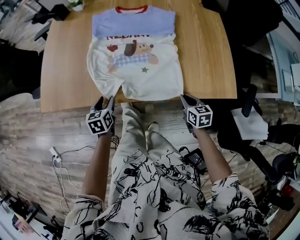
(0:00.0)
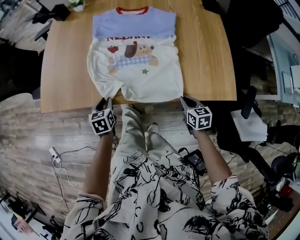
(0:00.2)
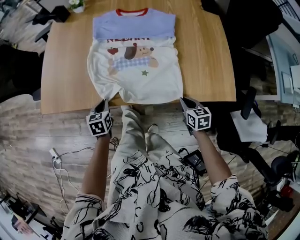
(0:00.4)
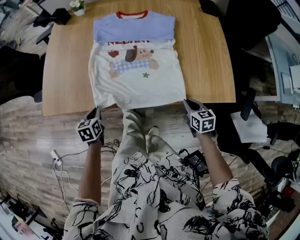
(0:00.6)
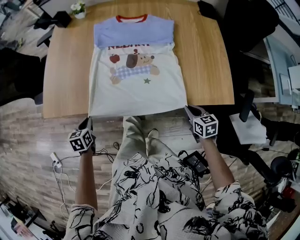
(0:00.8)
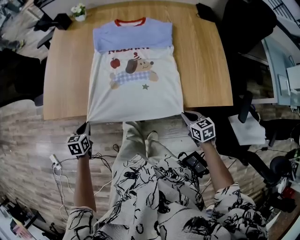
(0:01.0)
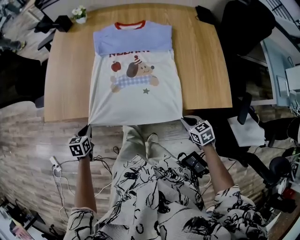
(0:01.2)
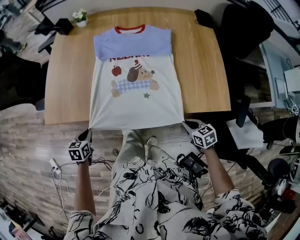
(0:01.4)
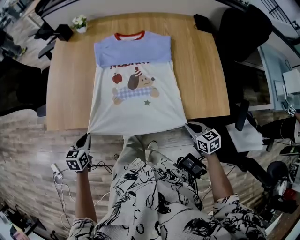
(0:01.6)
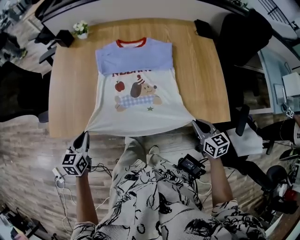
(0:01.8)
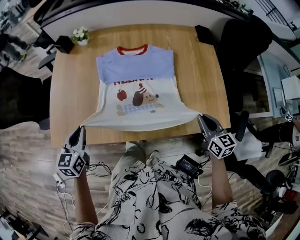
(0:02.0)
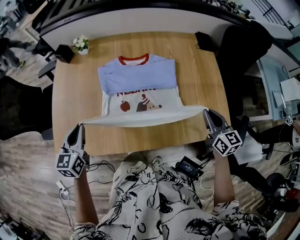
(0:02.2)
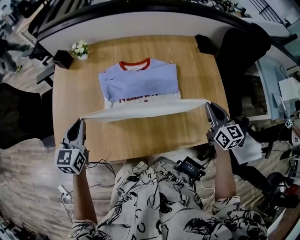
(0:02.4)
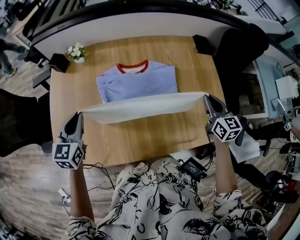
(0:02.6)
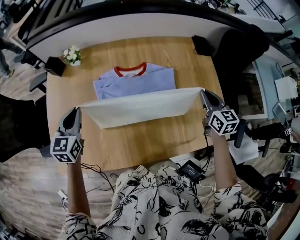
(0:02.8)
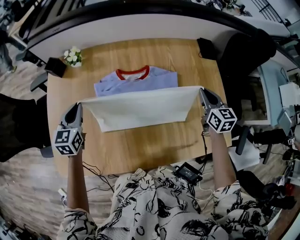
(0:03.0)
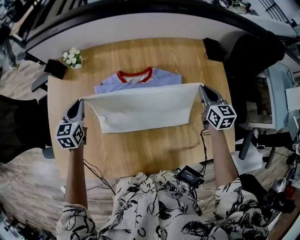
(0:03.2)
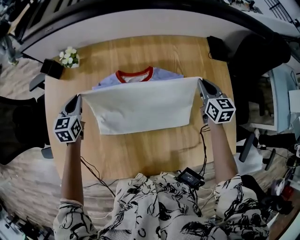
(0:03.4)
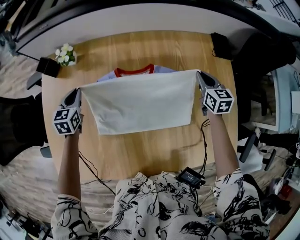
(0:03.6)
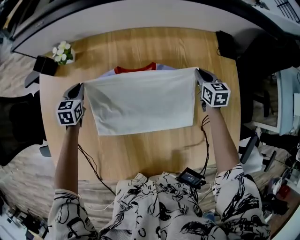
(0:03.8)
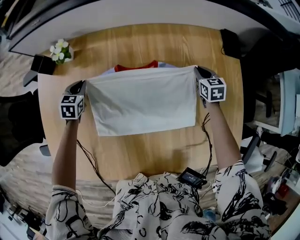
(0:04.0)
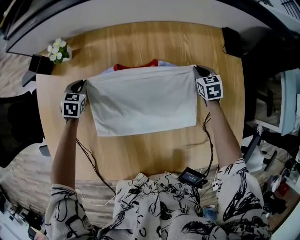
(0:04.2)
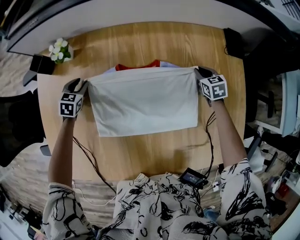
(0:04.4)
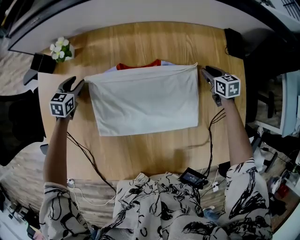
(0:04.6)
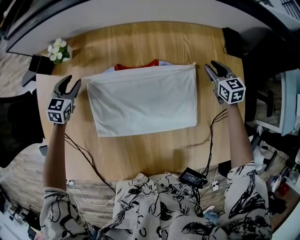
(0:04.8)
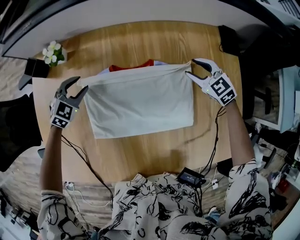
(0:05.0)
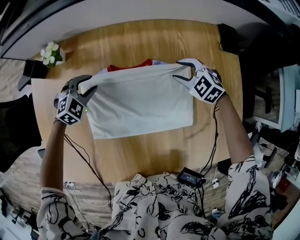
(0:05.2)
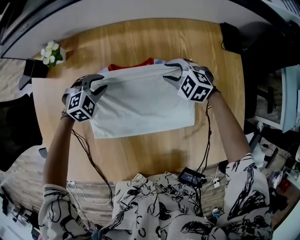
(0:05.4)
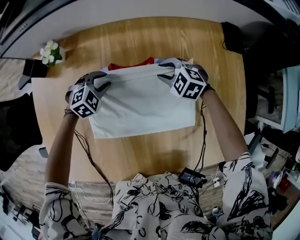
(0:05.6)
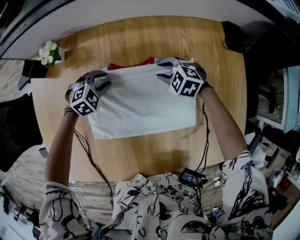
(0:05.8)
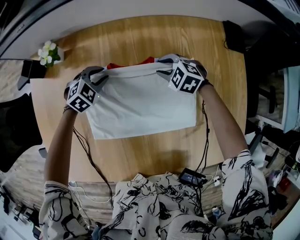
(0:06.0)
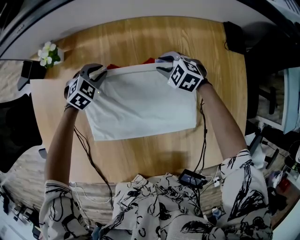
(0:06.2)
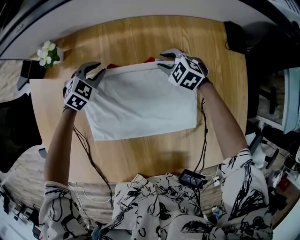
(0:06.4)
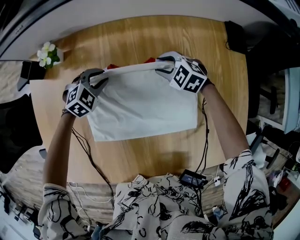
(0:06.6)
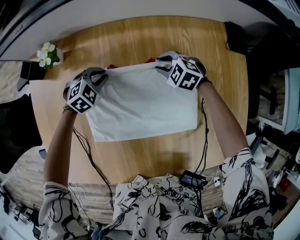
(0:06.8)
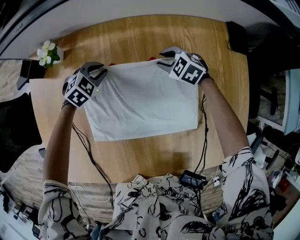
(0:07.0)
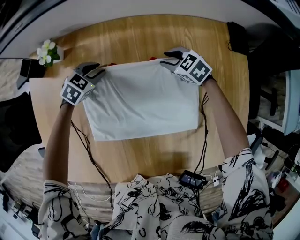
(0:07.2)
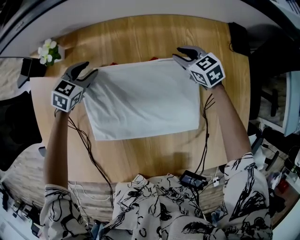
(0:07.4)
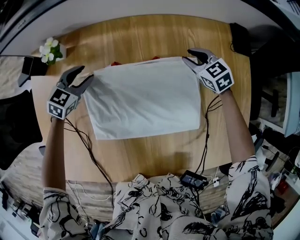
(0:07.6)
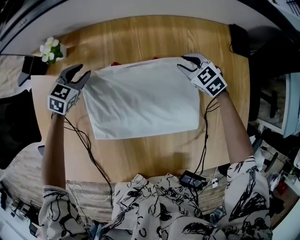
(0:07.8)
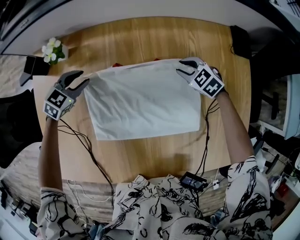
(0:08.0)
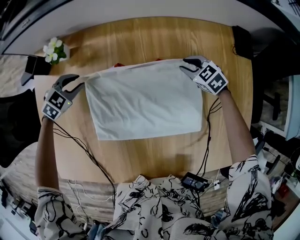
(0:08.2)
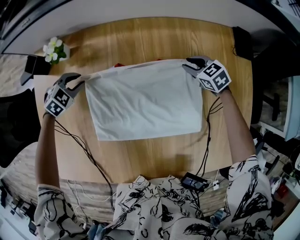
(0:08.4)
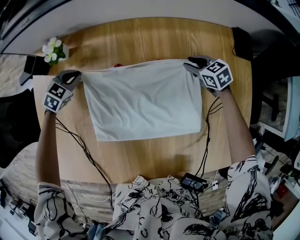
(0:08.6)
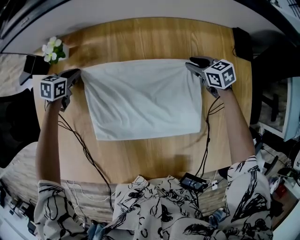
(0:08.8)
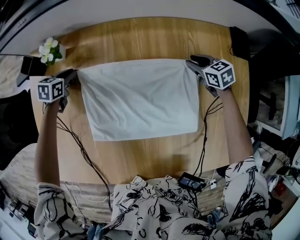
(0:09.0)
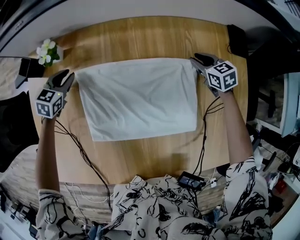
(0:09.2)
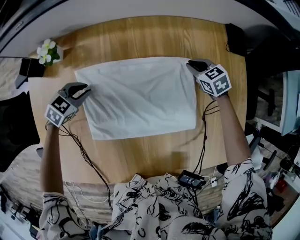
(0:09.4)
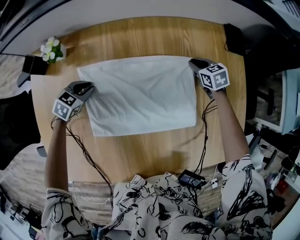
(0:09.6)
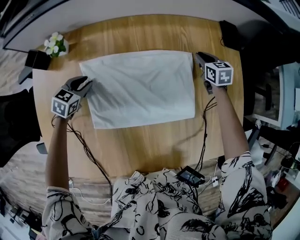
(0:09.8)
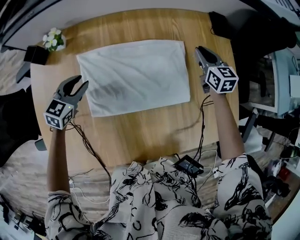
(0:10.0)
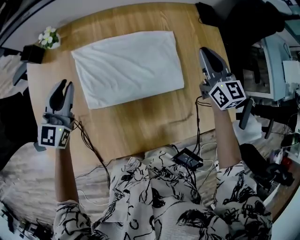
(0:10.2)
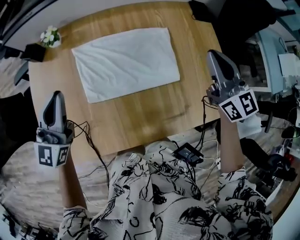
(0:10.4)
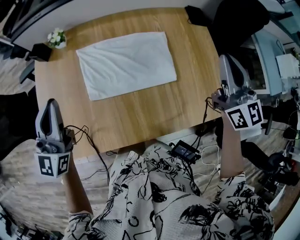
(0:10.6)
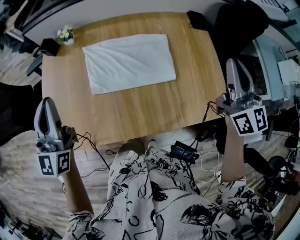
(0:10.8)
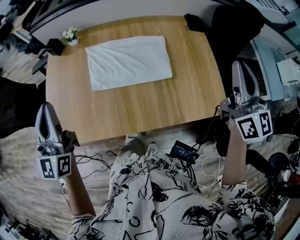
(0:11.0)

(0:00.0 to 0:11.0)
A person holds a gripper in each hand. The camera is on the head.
0:00.0 - 0:01.6: The left gripper moves to the left and upward, approximately 15 cm, and closes its fingers. Meanwhile the right gripper is displaced upward by some 5 cm.
0:01.6 - 0:03.2: The two grippers travel together, forward, approximately 50 cm. The right gripper turns by about 30 degrees.
0:03.2 - 0:04.8: Both grippers move forward and downward, some 20 cm. The left gripper opens.
0:04.8 - 0:06.2: The right gripper goes some 20 cm to the left, and swivels roughly 50 degrees. Meanwhile the left gripper moves to the right, some 15 cm, and turns by roughly 30 degrees.
0:06.2 - 0:07.8: The left gripper travels to the left by roughly 10 cm, and turns by about 20 degrees; the right gripper goes some 5 cm to the right.
0:07.8 - 0:09.4: The right gripper travels to the right by some 5 cm; the left gripper heads backward, covering some 5 cm.
0:09.4 - 0:11.0: Both grippers move upward and backward, about 60 cm. The right gripper tilts its fingers about 60 degrees upward, while the left gripper tips its fingers upward by roughly 70 degrees.

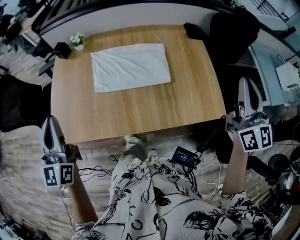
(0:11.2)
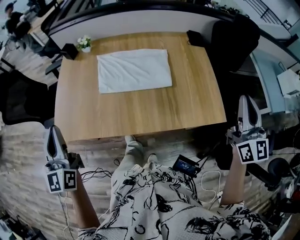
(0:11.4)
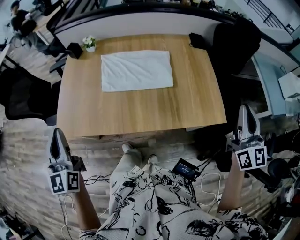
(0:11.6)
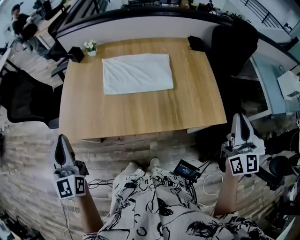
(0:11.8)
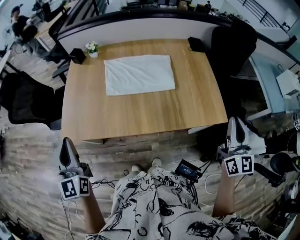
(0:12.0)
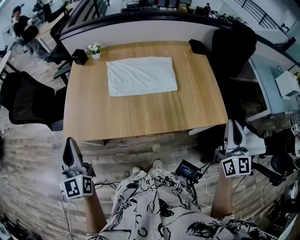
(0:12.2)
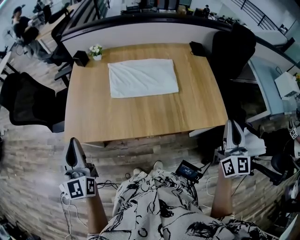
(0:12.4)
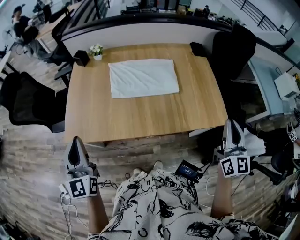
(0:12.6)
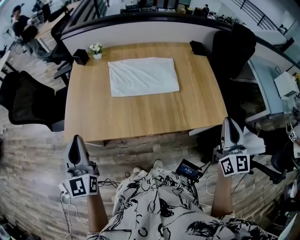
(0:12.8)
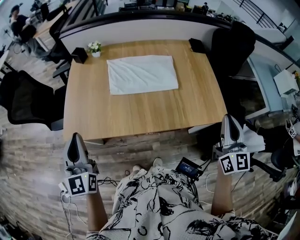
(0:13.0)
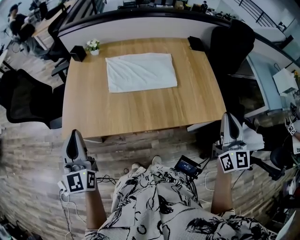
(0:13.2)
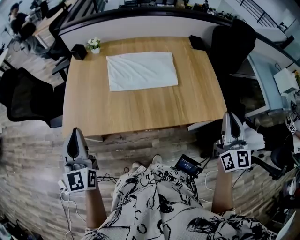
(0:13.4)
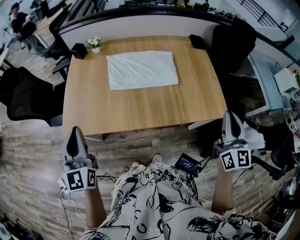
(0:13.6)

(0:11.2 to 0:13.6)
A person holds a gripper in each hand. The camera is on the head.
0:11.2 - 0:12.4: The left gripper is displaced backward by roughly 10 cm. Meanwhile the right gripper shifts roughly 15 cm backward and downward.
0:12.4 - 0:13.6: The grippers stay close to where they were, moving slightly.

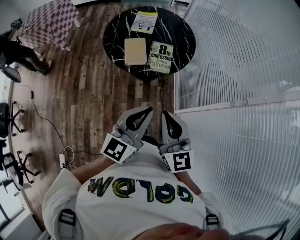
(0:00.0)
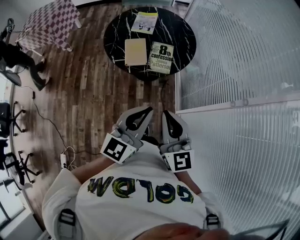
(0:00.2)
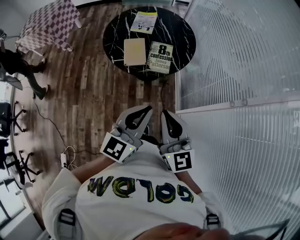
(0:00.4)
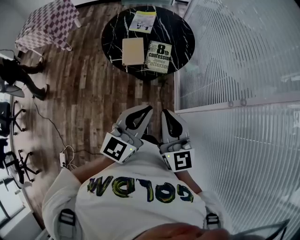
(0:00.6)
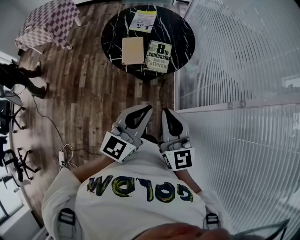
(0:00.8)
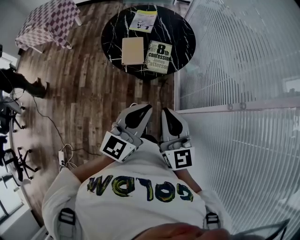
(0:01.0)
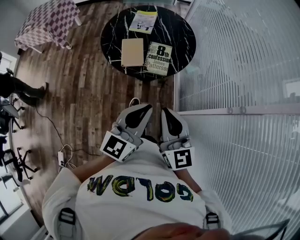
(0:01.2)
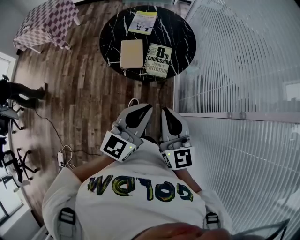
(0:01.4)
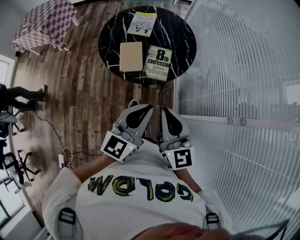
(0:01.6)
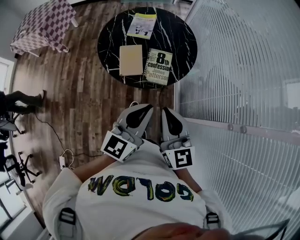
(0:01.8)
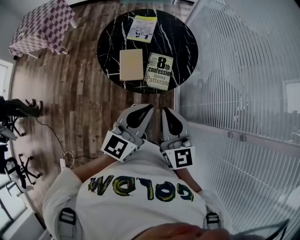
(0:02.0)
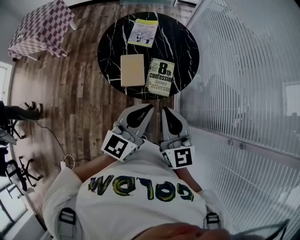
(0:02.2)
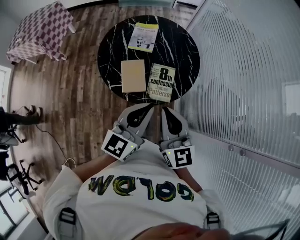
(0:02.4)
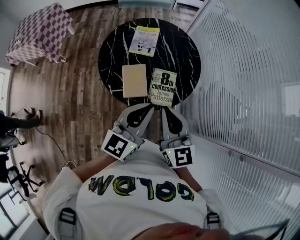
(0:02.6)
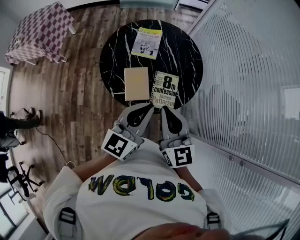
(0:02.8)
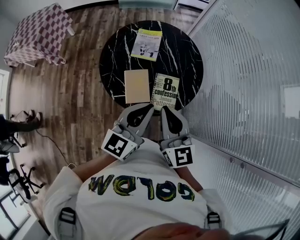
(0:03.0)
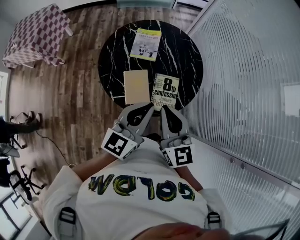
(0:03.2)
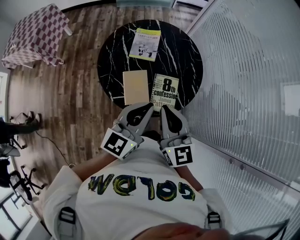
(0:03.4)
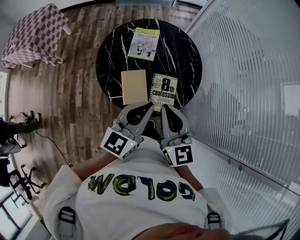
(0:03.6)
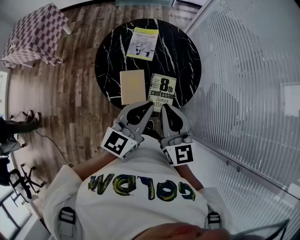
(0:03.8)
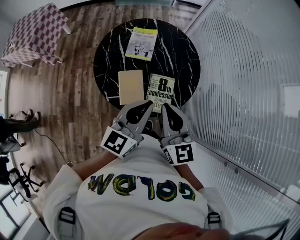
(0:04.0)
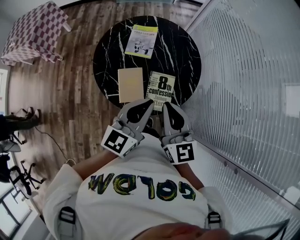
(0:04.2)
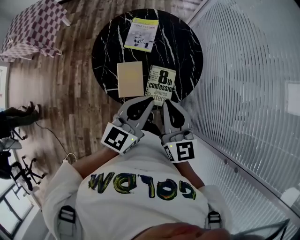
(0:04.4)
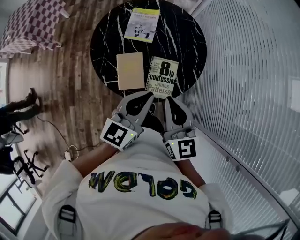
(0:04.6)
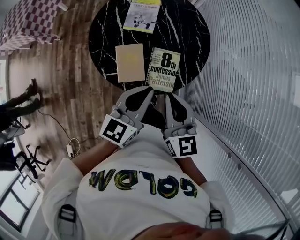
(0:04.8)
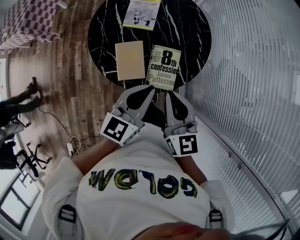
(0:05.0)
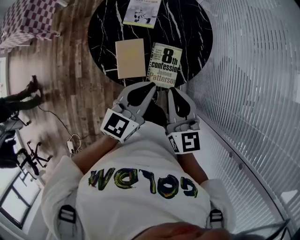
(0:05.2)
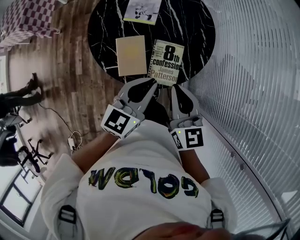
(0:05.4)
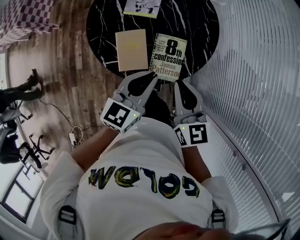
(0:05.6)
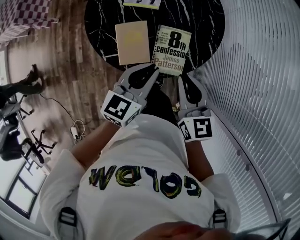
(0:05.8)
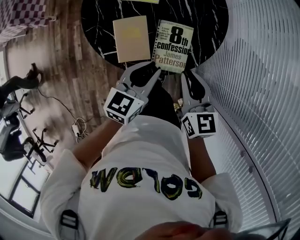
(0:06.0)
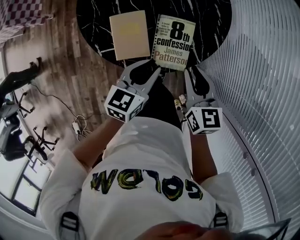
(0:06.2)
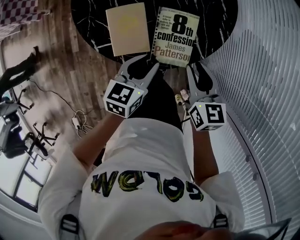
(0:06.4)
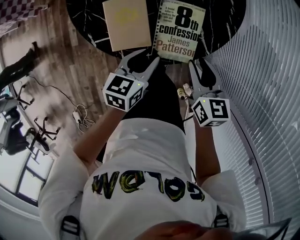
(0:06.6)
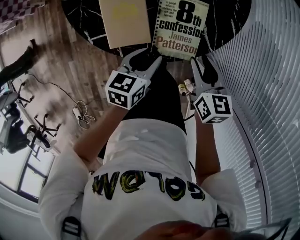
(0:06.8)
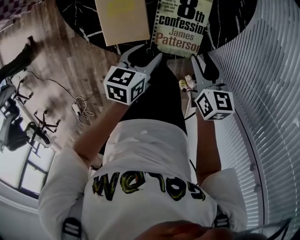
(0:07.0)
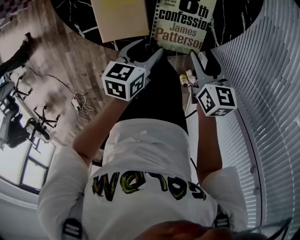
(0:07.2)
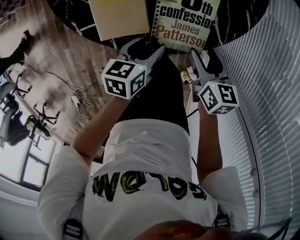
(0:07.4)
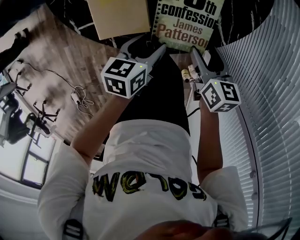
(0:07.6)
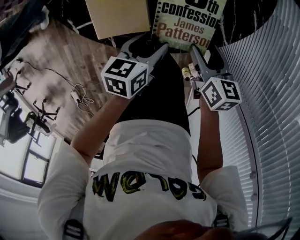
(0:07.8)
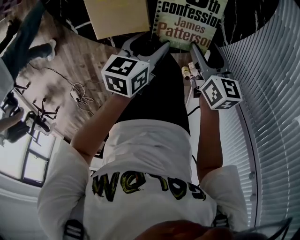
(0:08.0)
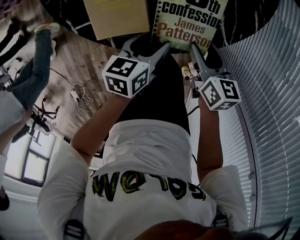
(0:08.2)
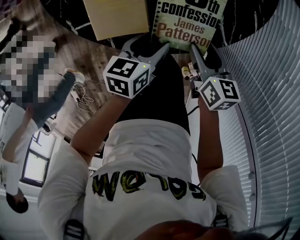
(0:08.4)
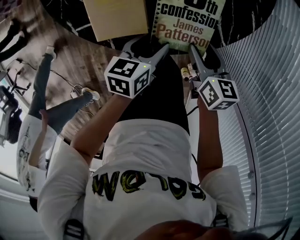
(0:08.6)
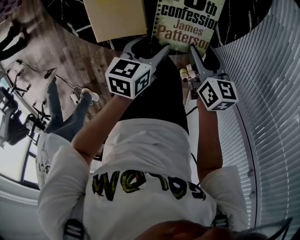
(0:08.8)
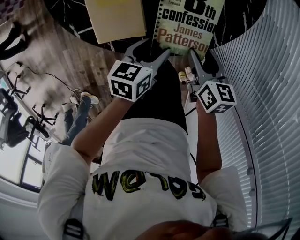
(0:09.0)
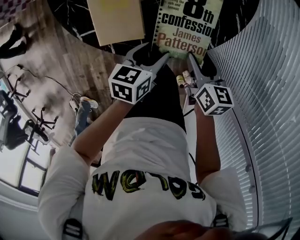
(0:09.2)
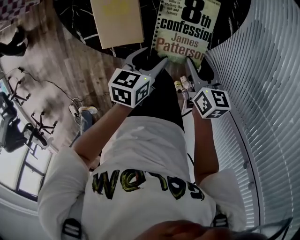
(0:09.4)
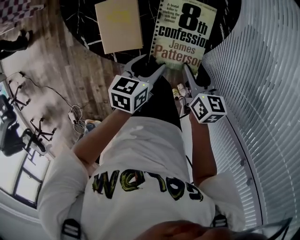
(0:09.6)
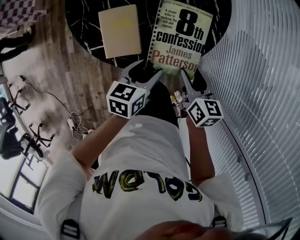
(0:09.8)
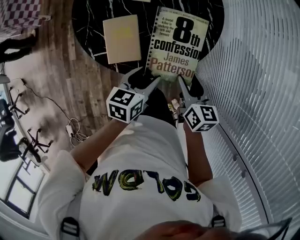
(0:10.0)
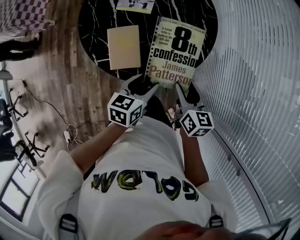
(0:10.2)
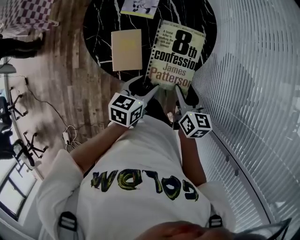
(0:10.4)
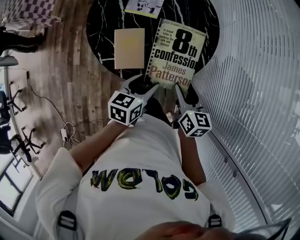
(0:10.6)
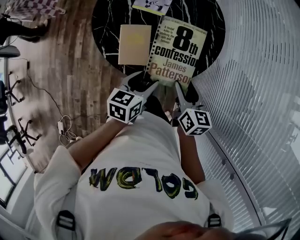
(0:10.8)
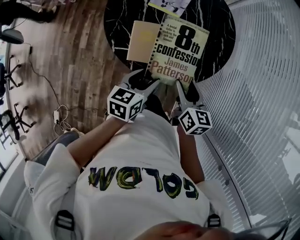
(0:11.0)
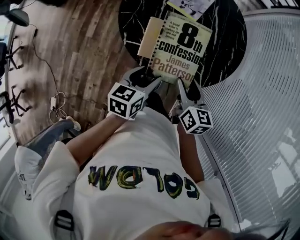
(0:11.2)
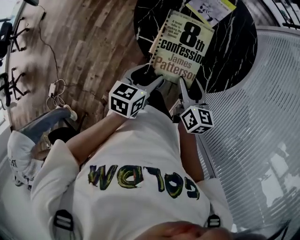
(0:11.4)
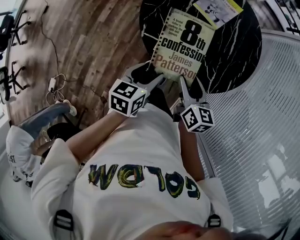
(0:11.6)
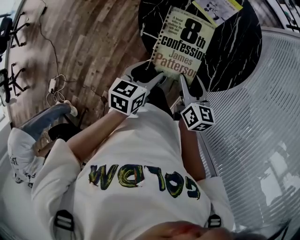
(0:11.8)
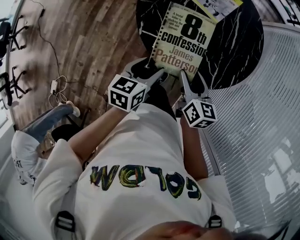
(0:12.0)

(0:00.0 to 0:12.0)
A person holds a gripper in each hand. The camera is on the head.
0:00.0 - 0:01.6: Both grippers move forward, about 10 cm.
0:01.6 - 0:03.0: The two grippers go some 25 cm forward and to the left.
0:03.0 - 0:04.4: The right gripper ends up approximately 5 cm from where it was. Meanwhile the left gripper ends up some 5 cm from where it was.
0:04.4 - 0:06.0: Both grippers travel together downward, some 15 cm. The right gripper changes its angle by some 20 degrees. The left gripper turns by about 20 degrees.
0:06.0 - 0:07.6: Both grippers travel together downward, approximately 25 cm. The left gripper rotates roughly 30 degrees, and opens up. Meanwhile the right gripper turns by about 30 degrees, and opens up.
0:07.6 - 0:10.4: The grippers stay close to where they were, moving slightly.
0:10.4 - 0:12.0: There are only small adjustments of the grippers.
